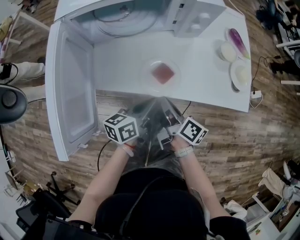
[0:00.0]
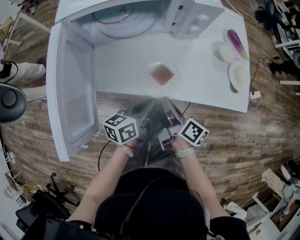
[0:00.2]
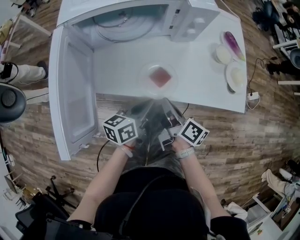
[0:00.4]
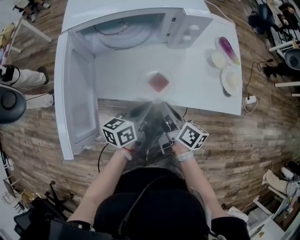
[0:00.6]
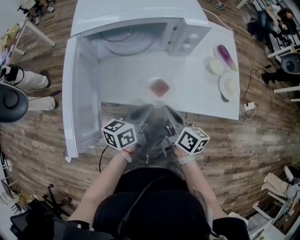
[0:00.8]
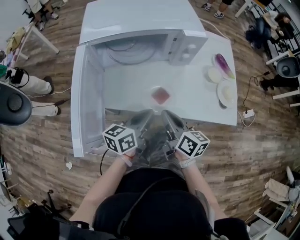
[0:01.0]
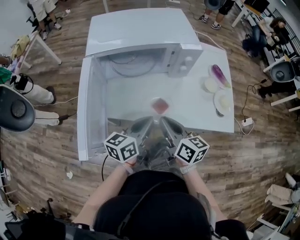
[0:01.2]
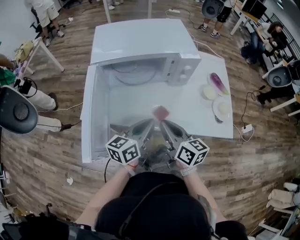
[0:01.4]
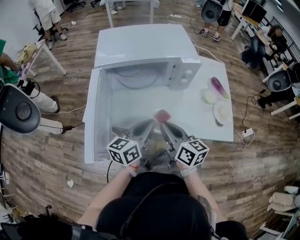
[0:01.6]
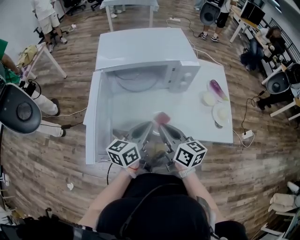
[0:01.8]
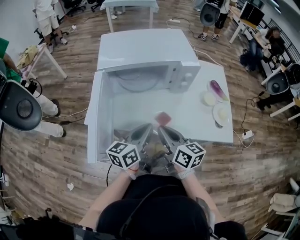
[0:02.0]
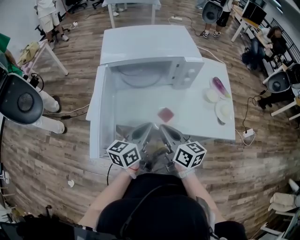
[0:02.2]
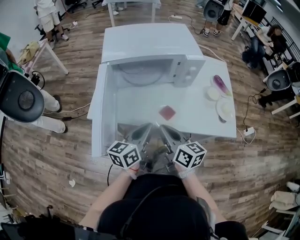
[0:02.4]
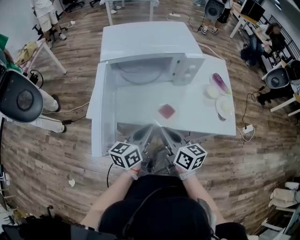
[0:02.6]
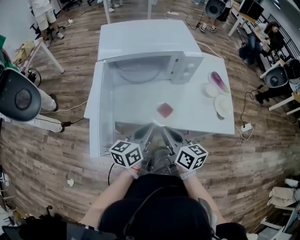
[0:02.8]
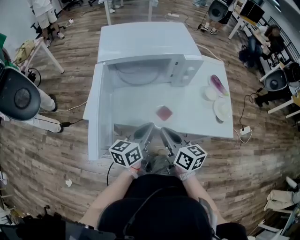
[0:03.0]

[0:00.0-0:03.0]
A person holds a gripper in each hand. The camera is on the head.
0:00.0 to 0:01.6: Both grippers travel together upward, approximately 15 cm. The right gripper changes its angle by some 40 degrees. Meanwhile the left gripper rotates about 20 degrees.
0:01.6 to 0:03.0: The grippers make only small movements.

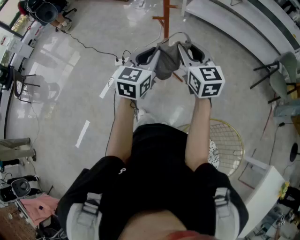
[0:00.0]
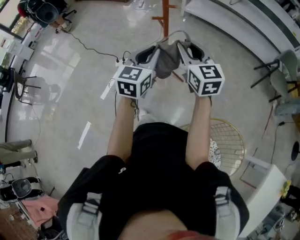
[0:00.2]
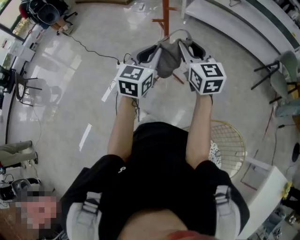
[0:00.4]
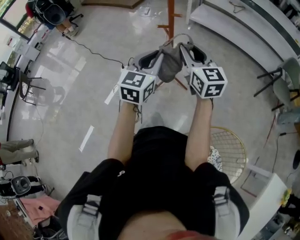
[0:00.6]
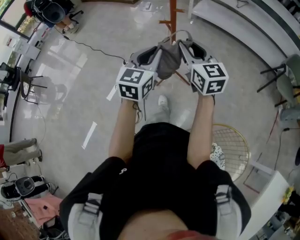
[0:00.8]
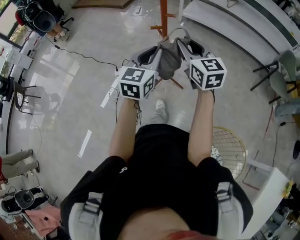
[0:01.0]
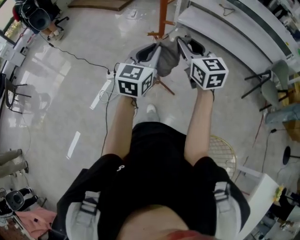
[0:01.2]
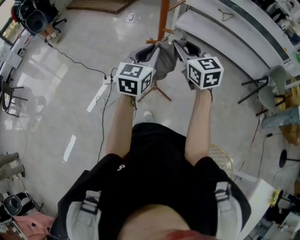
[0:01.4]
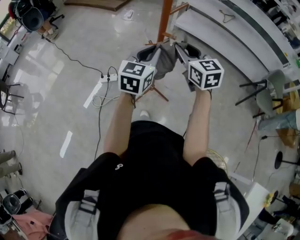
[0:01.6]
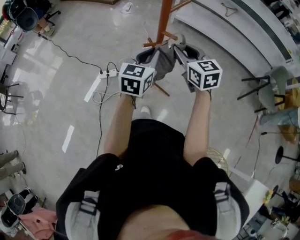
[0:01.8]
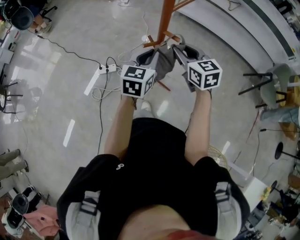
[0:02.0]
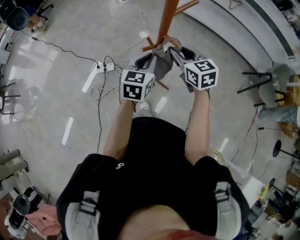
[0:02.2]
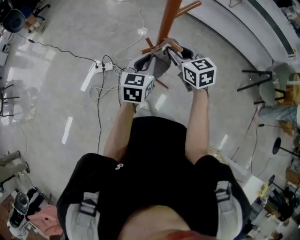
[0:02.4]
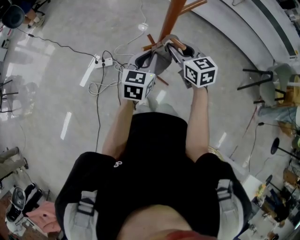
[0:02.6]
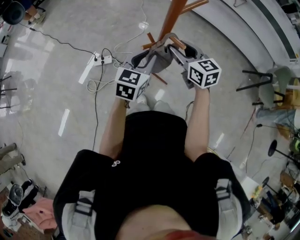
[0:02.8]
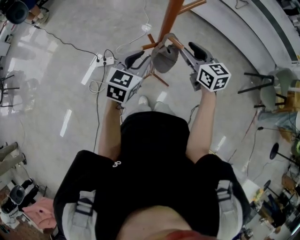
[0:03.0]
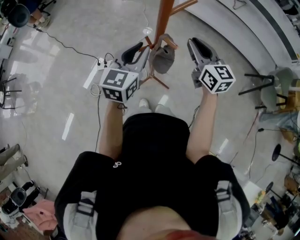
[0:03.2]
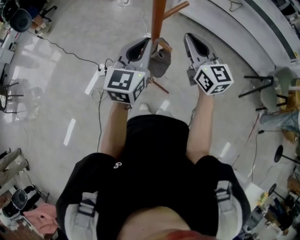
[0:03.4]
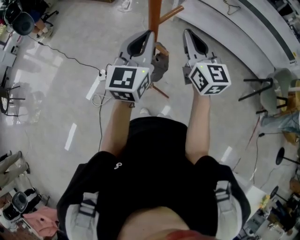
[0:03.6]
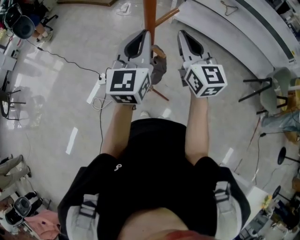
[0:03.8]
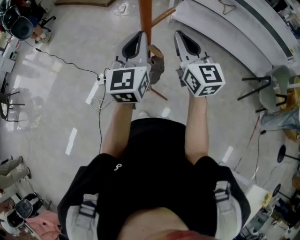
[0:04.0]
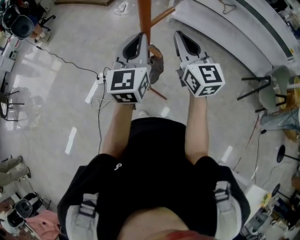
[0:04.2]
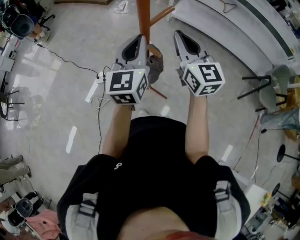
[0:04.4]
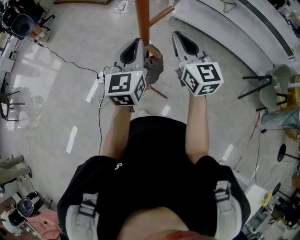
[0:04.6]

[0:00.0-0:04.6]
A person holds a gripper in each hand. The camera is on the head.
0:00.0 to 0:01.6: The two grippers go roughly 20 cm forward.
0:01.6 to 0:03.0: The two grippers go roughly 15 cm downward and forward.
0:03.0 to 0:04.6: Both grippers travel together upward, some 15 cm. The left gripper rotates roughly 30 degrees, and closes. Meanwhile the right gripper swivels some 20 degrees, and closes up.

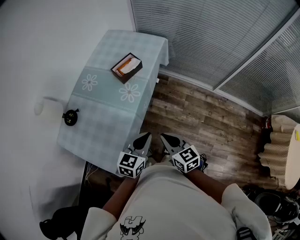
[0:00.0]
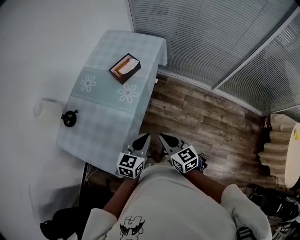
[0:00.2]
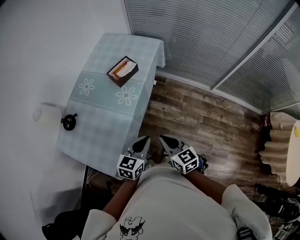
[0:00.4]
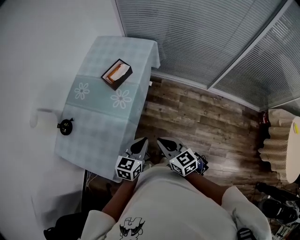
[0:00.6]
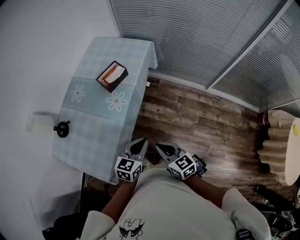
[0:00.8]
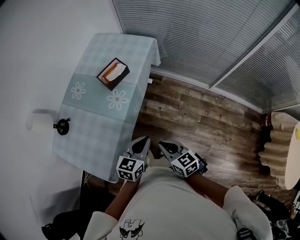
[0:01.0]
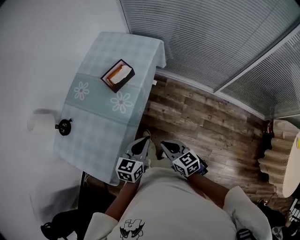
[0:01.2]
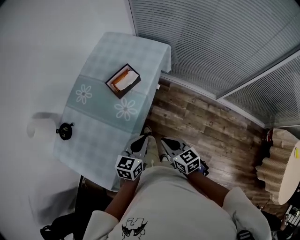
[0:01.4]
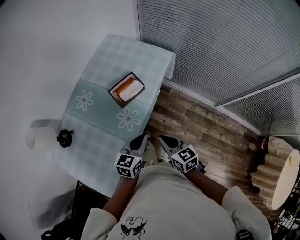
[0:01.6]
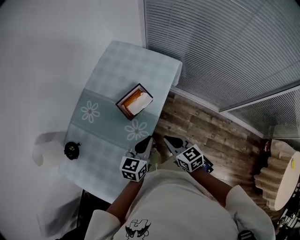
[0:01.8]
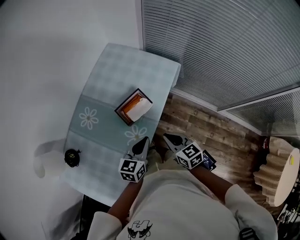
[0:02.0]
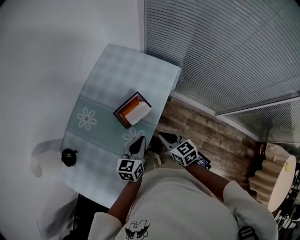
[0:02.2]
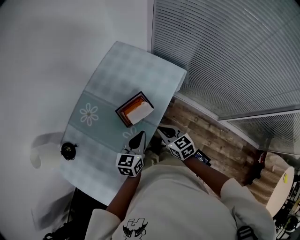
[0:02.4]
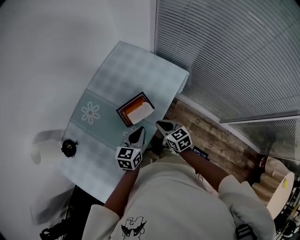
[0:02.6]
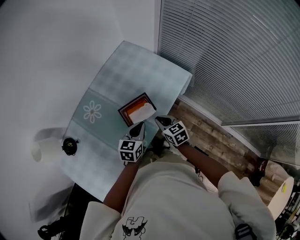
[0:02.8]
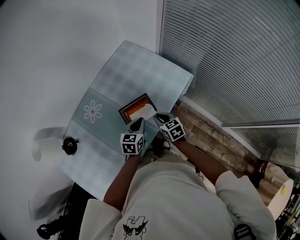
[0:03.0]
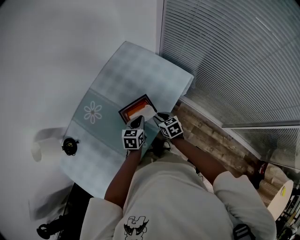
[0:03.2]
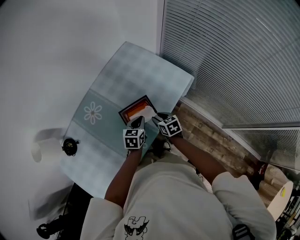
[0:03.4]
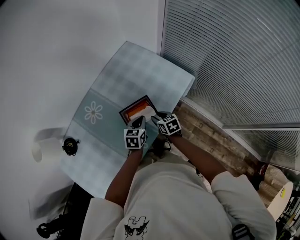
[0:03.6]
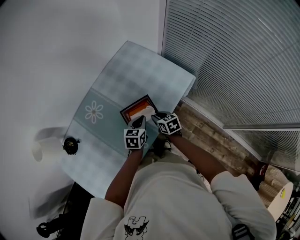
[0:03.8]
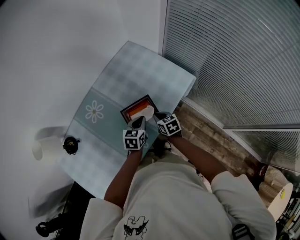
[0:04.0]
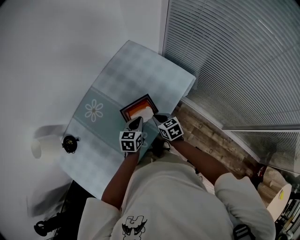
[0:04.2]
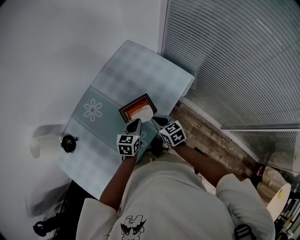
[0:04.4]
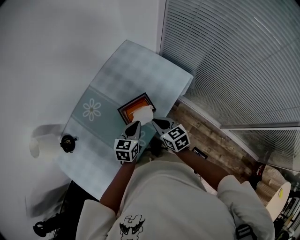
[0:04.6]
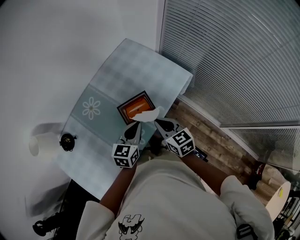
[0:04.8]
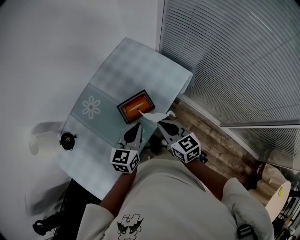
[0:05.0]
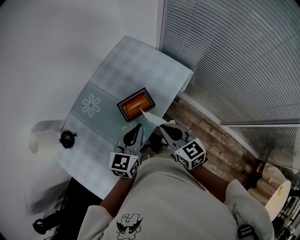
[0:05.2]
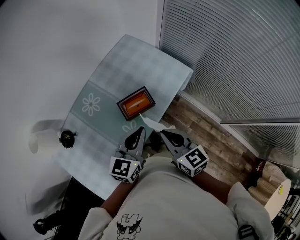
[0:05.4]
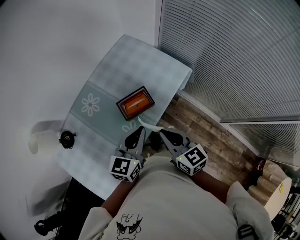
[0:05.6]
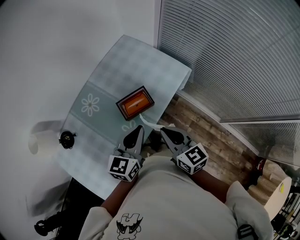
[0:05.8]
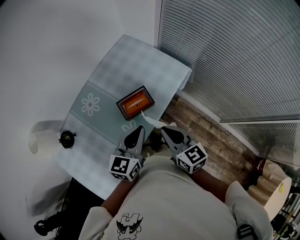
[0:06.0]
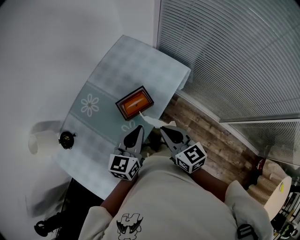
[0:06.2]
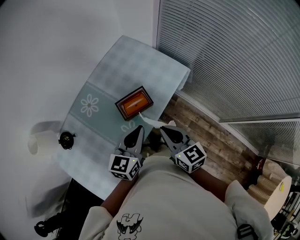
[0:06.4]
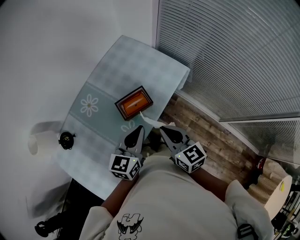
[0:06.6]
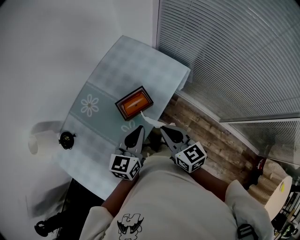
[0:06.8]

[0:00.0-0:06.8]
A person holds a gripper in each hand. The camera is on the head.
0:00.0 to 0:01.4: The right gripper travels forward and downward by approximately 15 cm. Meanwhile the left gripper moves forward, some 15 cm.
0:01.4 to 0:02.8: Both grippers travel together forward, roughly 30 cm.
0:02.8 to 0:04.0: Both grippers move downward, some 5 cm. The right gripper opens and closes again.
0:04.0 to 0:05.4: The grippers both shift upward and backward by some 25 cm. The left gripper rotates roughly 20 degrees. The right gripper changes its angle by about 20 degrees.
0:05.4 to 0:06.8: The grippers stay close to where they were, moving slightly.

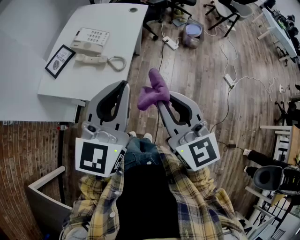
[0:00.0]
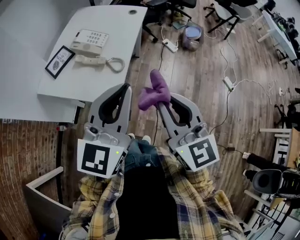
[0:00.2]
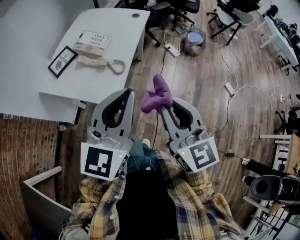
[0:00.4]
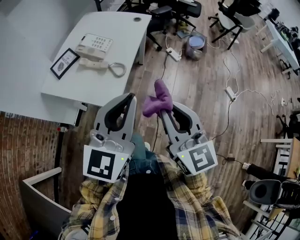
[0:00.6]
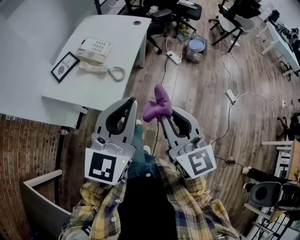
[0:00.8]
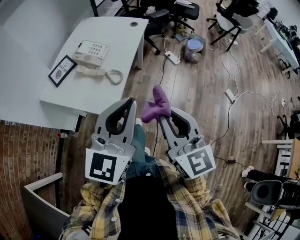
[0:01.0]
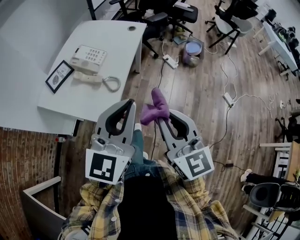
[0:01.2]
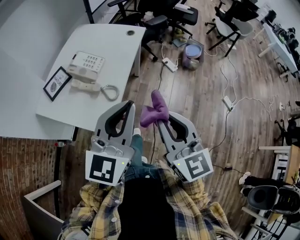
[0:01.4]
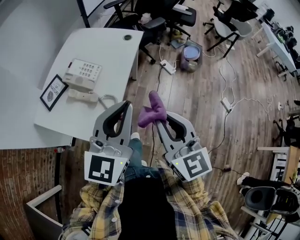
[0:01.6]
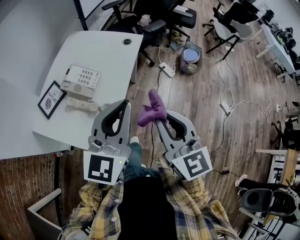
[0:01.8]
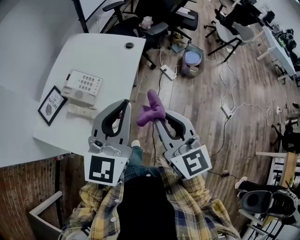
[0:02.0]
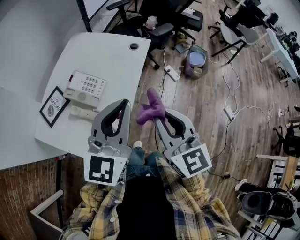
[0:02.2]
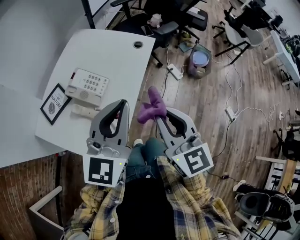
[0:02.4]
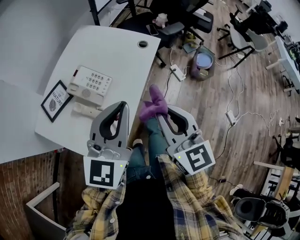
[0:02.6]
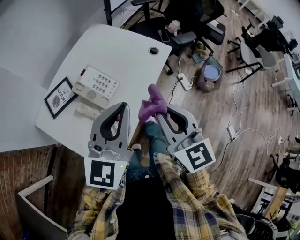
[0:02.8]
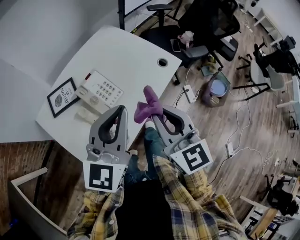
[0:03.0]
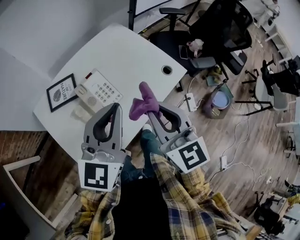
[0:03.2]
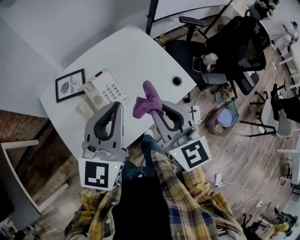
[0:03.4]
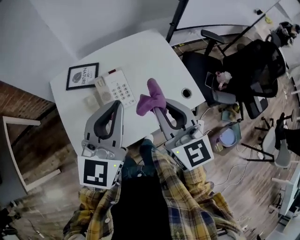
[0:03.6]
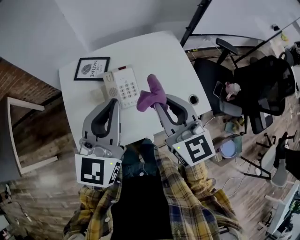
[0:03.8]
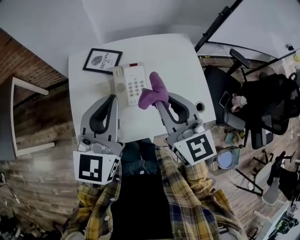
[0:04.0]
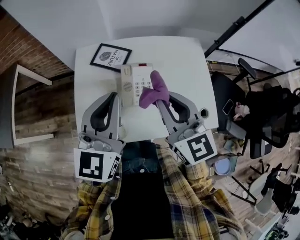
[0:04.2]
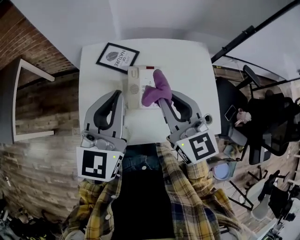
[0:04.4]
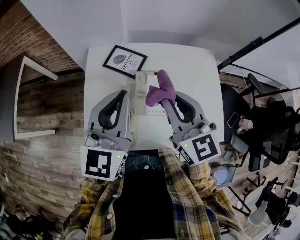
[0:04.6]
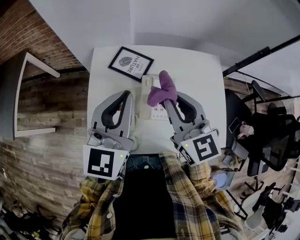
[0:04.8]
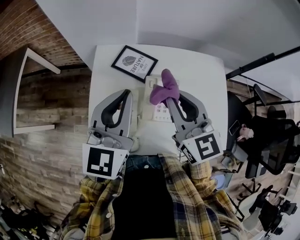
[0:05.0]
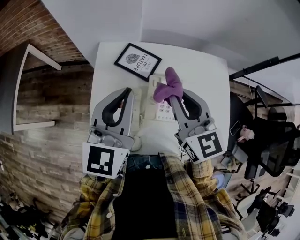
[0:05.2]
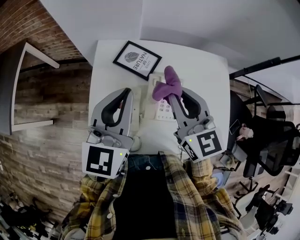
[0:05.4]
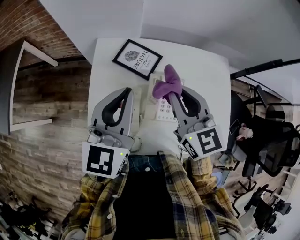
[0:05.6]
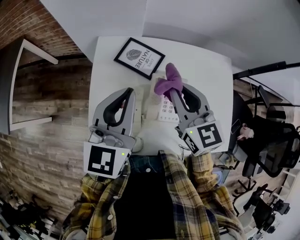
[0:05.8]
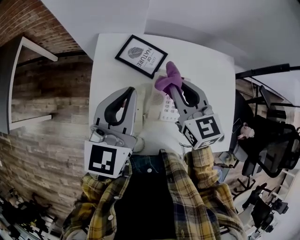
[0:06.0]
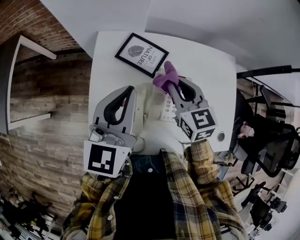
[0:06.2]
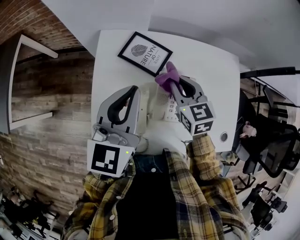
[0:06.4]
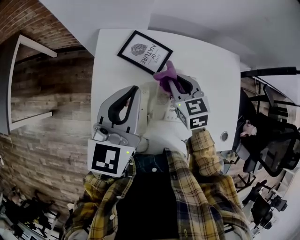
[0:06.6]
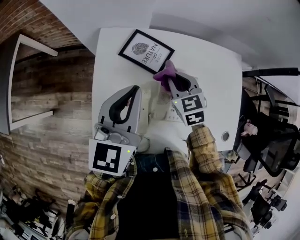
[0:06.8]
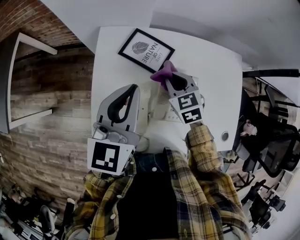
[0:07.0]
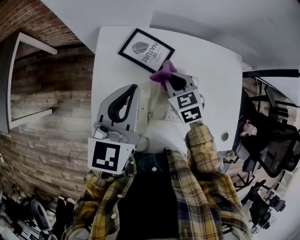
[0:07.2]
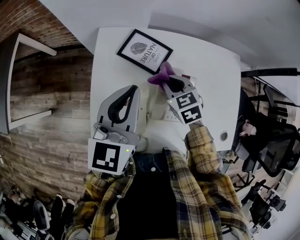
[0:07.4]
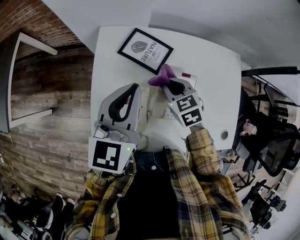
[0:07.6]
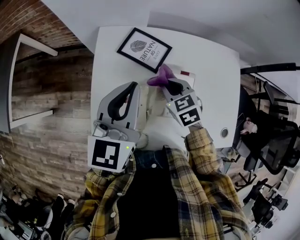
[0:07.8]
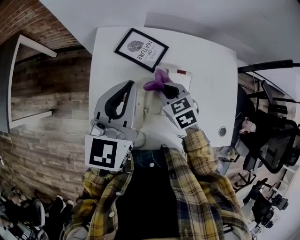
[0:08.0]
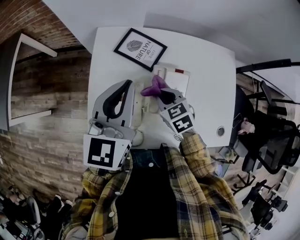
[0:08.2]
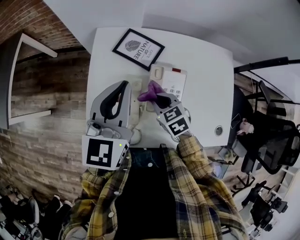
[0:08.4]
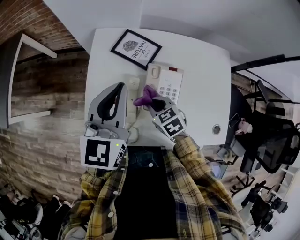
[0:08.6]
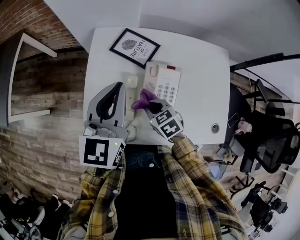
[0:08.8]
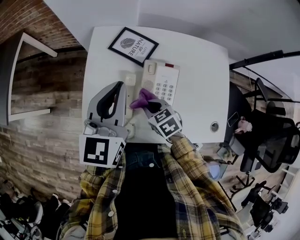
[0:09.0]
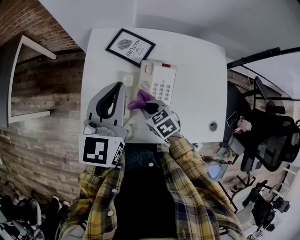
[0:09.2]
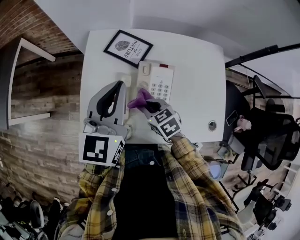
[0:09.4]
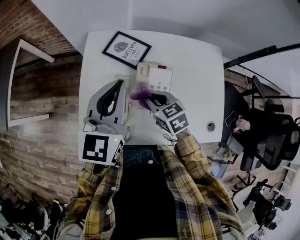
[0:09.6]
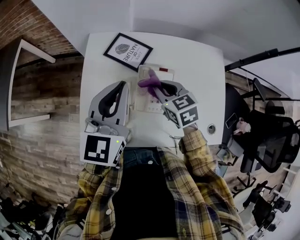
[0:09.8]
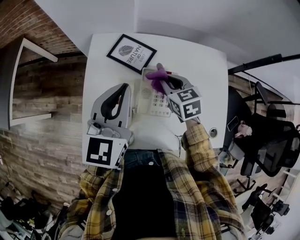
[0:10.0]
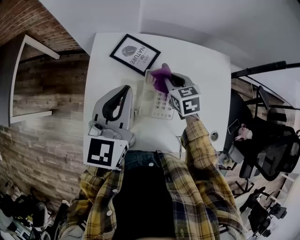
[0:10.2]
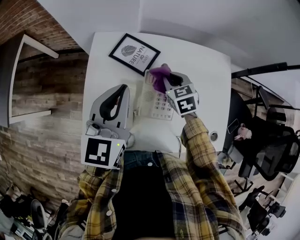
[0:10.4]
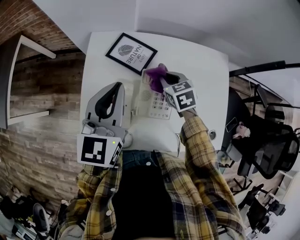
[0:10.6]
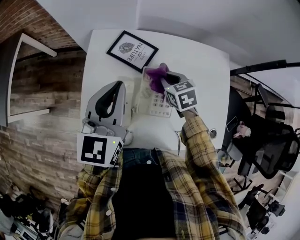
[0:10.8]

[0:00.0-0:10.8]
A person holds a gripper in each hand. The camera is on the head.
0:00.0 to 0:01.6: The two grippers go some 15 cm forward and to the right.
0:01.6 to 0:03.0: Both grippers move forward, about 25 cm. The left gripper changes its angle by roughly 20 degrees, while the right gripper changes its angle by approximately 20 degrees.
0:03.0 to 0:04.6: The right gripper moves approximately 20 cm, and turns by about 50 degrees; the left gripper ends up some 15 cm from where it was, and changes its angle by approximately 50 degrees.
0:04.6 to 0:06.2: The right gripper travels downward and forward by approximately 20 cm; the left gripper is displaced forward, downward and to the left by some 10 cm.
0:06.2 to 0:07.8: The right gripper travels downward by about 10 cm, and changes its angle by some 20 degrees.
0:07.8 to 0:09.2: The right gripper is displaced backward by approximately 15 cm. Meanwhile the left gripper travels backward by approximately 5 cm.
0:09.2 to 0:10.8: The right gripper moves forward and to the right, approximately 20 cm.
